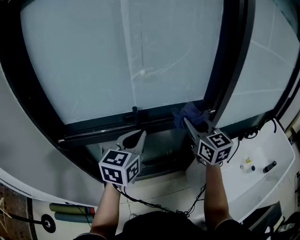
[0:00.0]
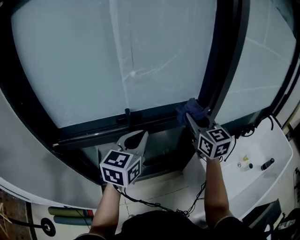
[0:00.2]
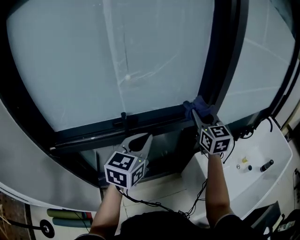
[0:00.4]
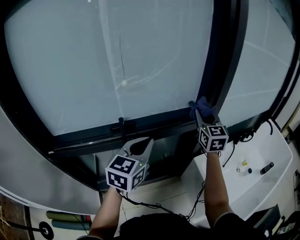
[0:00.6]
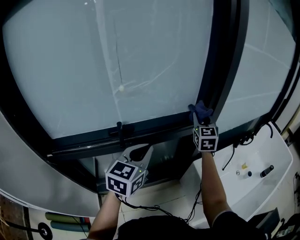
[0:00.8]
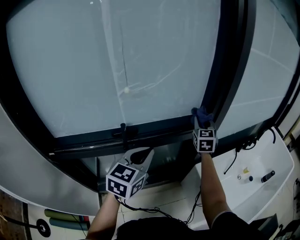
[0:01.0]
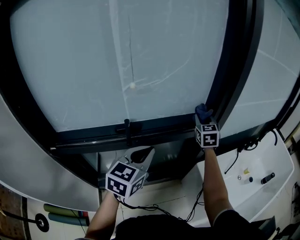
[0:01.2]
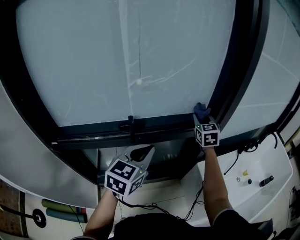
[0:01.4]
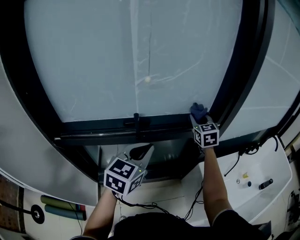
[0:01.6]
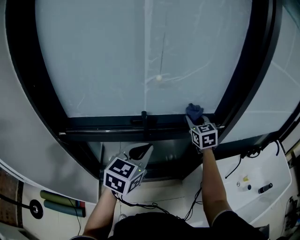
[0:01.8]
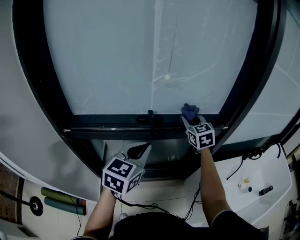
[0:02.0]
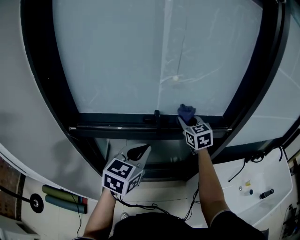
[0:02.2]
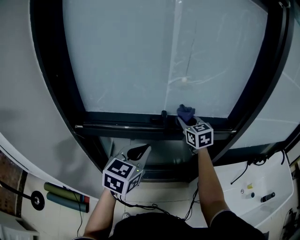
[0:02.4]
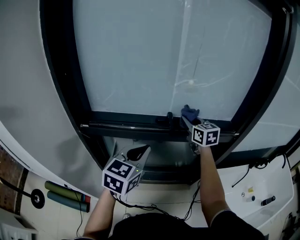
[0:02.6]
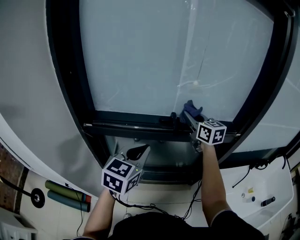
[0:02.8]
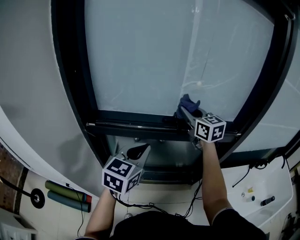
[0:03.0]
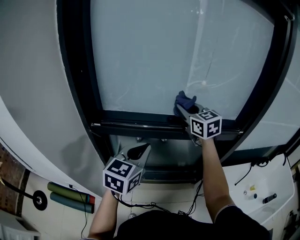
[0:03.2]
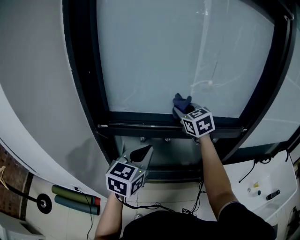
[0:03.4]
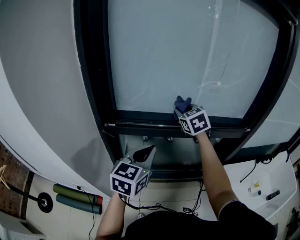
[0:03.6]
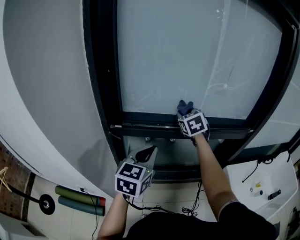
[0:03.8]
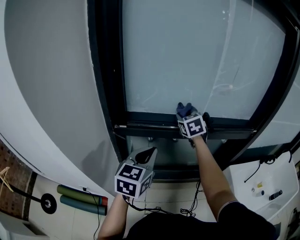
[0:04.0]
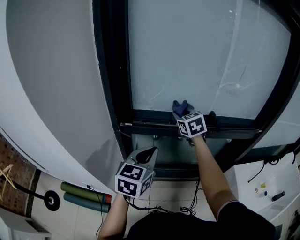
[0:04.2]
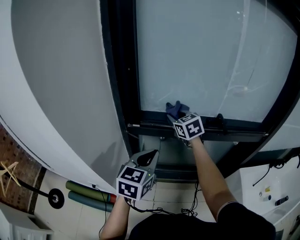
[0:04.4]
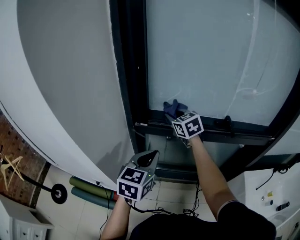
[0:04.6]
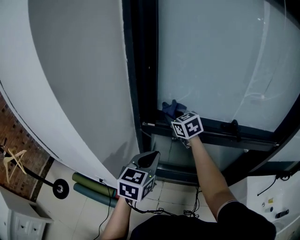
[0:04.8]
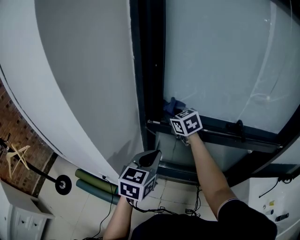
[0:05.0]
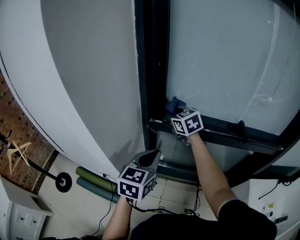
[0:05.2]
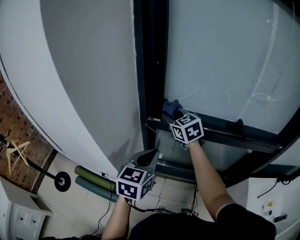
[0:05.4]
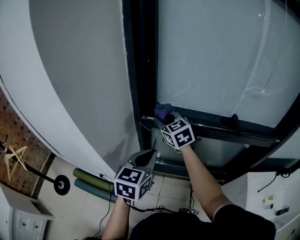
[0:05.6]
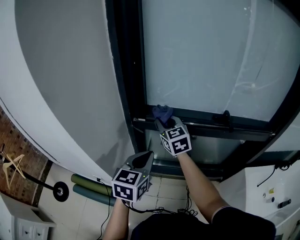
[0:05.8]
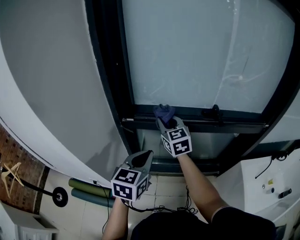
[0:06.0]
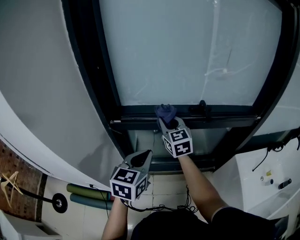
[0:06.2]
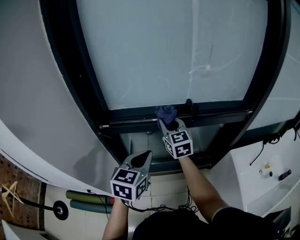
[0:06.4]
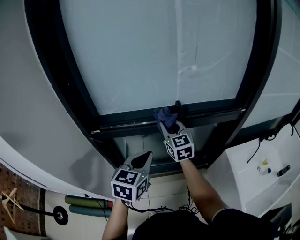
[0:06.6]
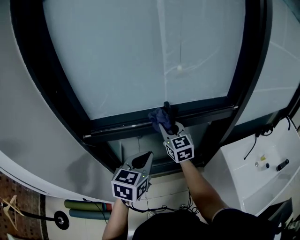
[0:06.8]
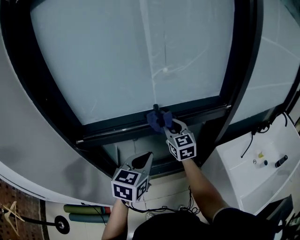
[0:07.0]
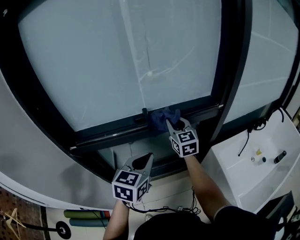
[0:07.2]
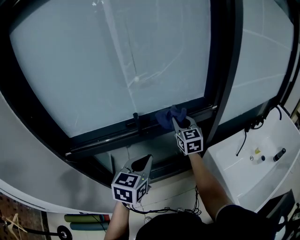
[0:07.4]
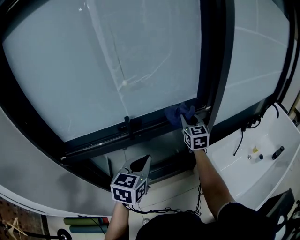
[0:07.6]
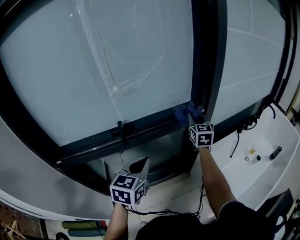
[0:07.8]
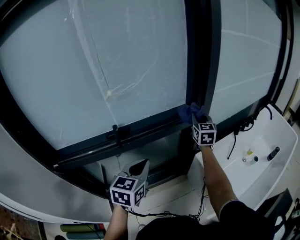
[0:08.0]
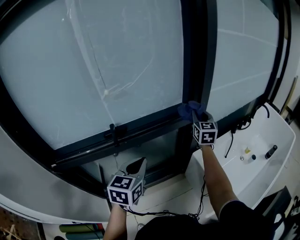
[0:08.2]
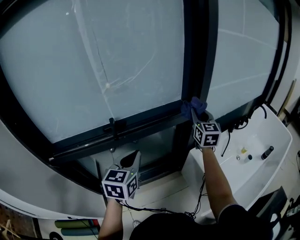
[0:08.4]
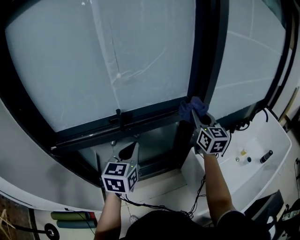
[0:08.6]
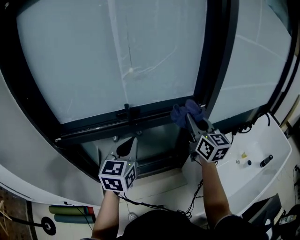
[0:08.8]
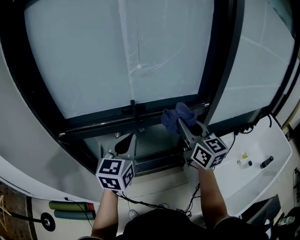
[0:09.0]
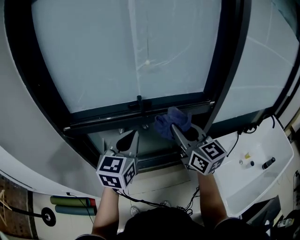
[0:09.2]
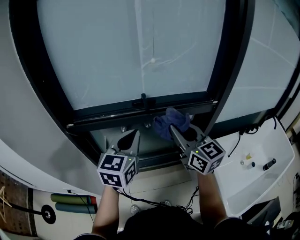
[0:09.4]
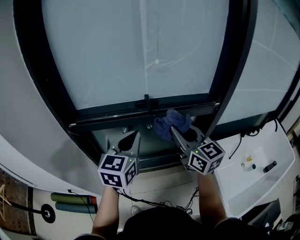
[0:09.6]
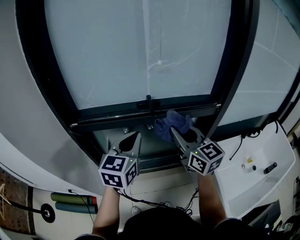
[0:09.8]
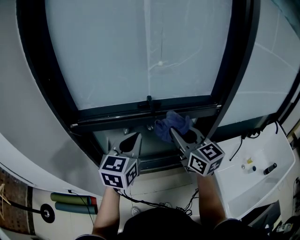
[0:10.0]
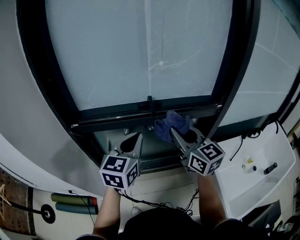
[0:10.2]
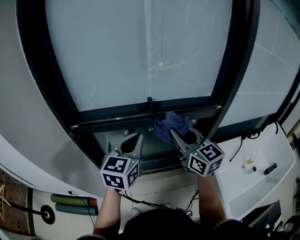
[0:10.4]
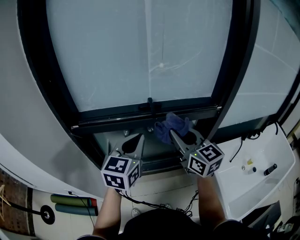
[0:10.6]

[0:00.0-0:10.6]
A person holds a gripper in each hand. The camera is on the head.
0.0 to 1.6 s: The right gripper is displaced forward and downward by approximately 20 cm, and turns by roughly 20 degrees.
1.6 to 3.0 s: The left gripper shifts some 15 cm to the left, while the right gripper heads to the left, covering roughly 25 cm, and rotates some 30 degrees.
3.0 to 4.6 s: The right gripper is displaced to the left by some 30 cm, and turns by approximately 20 degrees; the left gripper moves to the left, approximately 20 cm.
4.6 to 6.0 s: The right gripper goes roughly 5 cm backward, and travels to the left and back again, approximately 10 cm each way.
6.0 to 7.6 s: The right gripper shifts by some 50 cm, and turns by about 40 degrees. Meanwhile the left gripper ends up roughly 30 cm from where it was, and swivels about 20 degrees.
7.6 to 9.0 s: The right gripper heads backward and upward, covering about 20 cm, and rotates some 30 degrees; the left gripper moves upward and to the left, some 10 cm.
9.0 to 10.6 s: The right gripper shifts approximately 10 cm to the left.

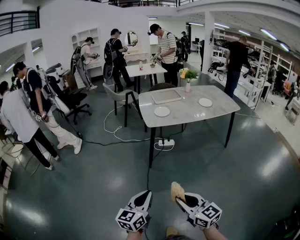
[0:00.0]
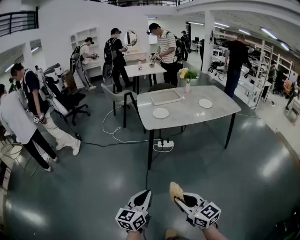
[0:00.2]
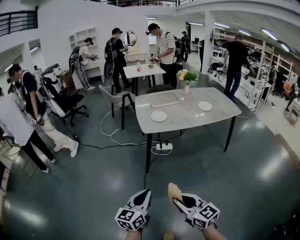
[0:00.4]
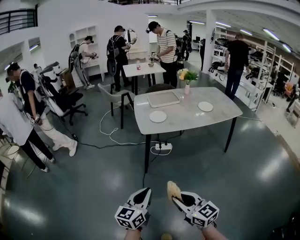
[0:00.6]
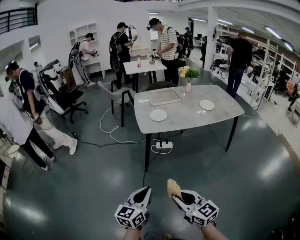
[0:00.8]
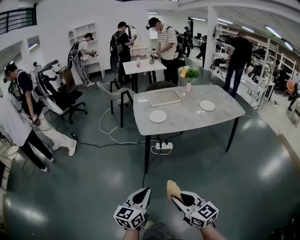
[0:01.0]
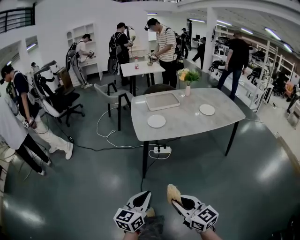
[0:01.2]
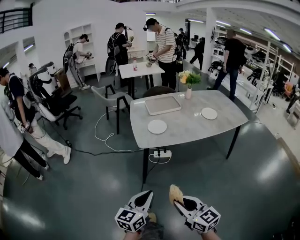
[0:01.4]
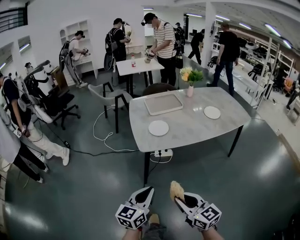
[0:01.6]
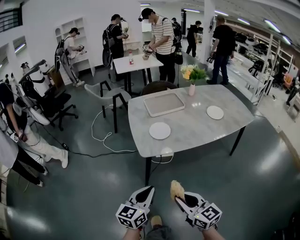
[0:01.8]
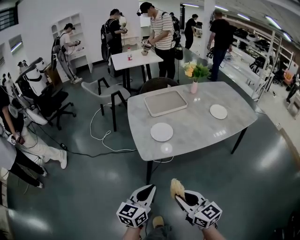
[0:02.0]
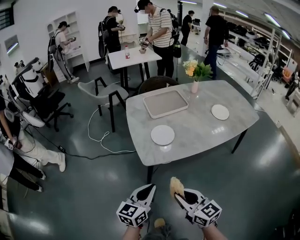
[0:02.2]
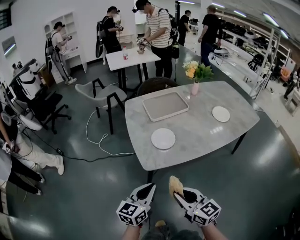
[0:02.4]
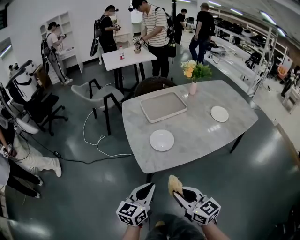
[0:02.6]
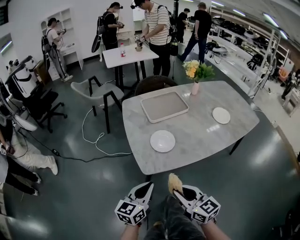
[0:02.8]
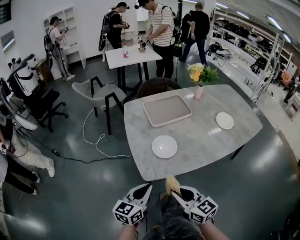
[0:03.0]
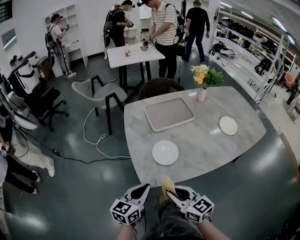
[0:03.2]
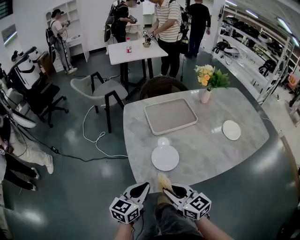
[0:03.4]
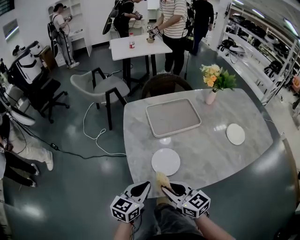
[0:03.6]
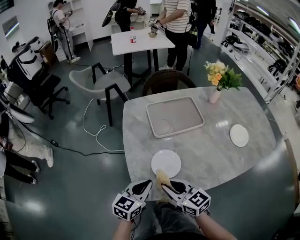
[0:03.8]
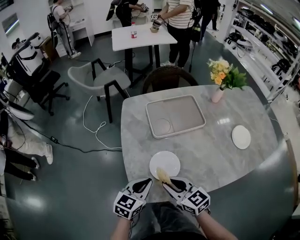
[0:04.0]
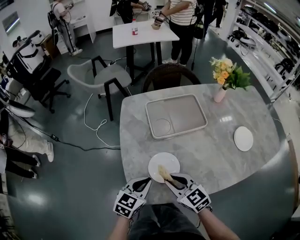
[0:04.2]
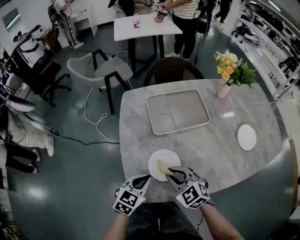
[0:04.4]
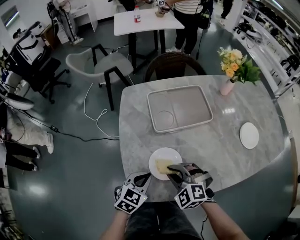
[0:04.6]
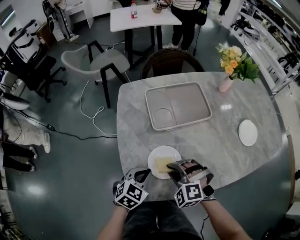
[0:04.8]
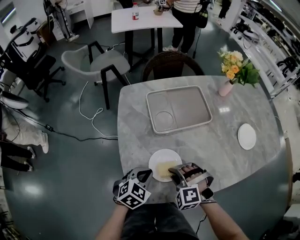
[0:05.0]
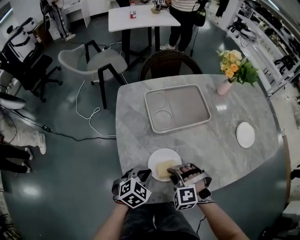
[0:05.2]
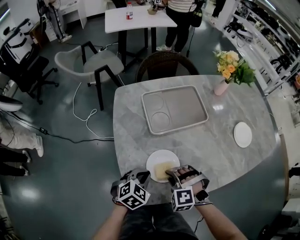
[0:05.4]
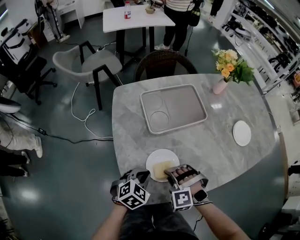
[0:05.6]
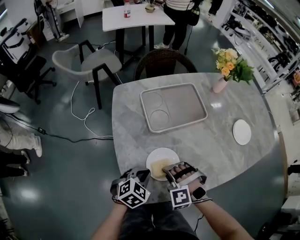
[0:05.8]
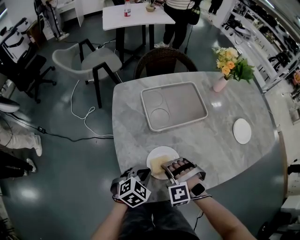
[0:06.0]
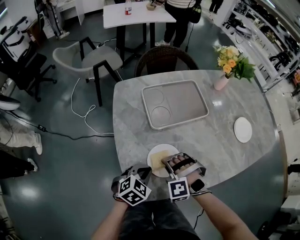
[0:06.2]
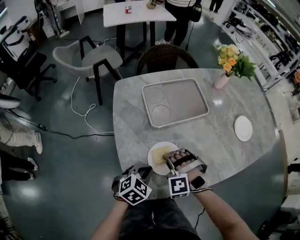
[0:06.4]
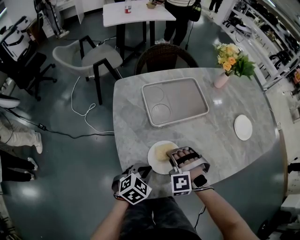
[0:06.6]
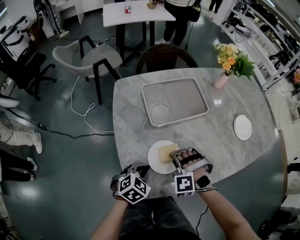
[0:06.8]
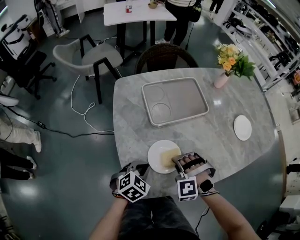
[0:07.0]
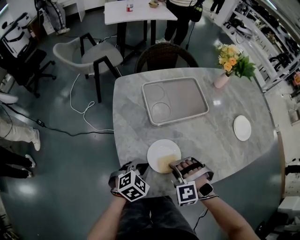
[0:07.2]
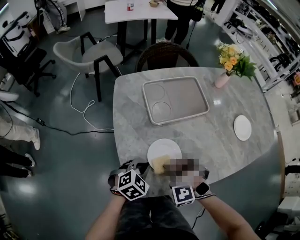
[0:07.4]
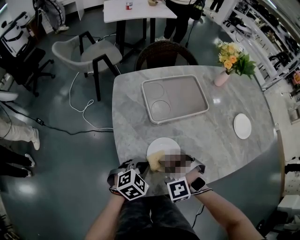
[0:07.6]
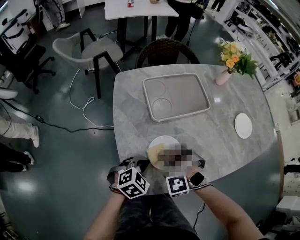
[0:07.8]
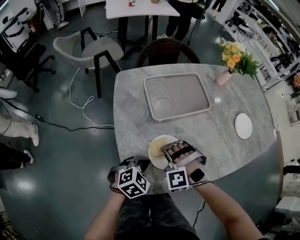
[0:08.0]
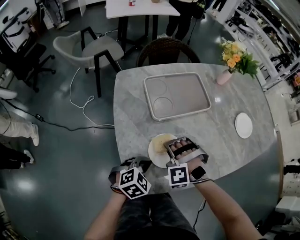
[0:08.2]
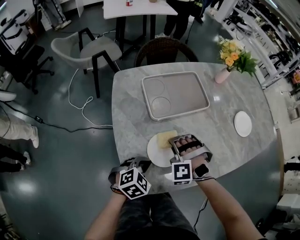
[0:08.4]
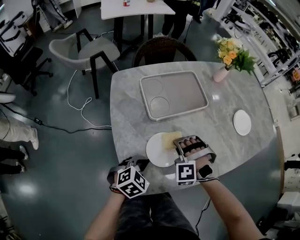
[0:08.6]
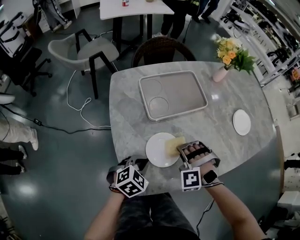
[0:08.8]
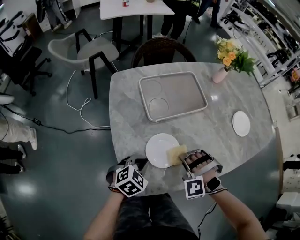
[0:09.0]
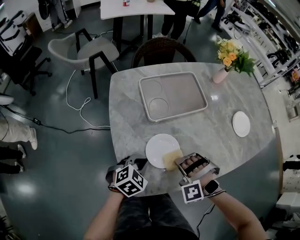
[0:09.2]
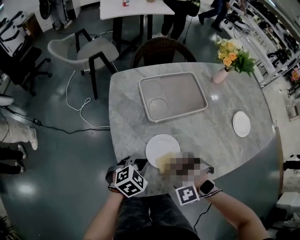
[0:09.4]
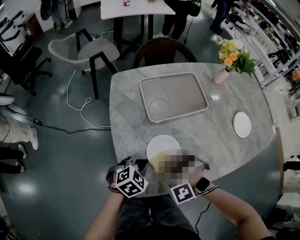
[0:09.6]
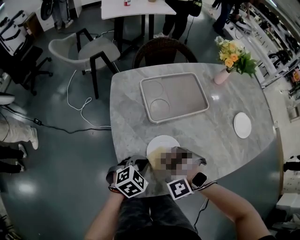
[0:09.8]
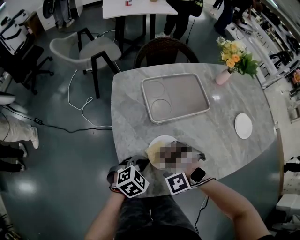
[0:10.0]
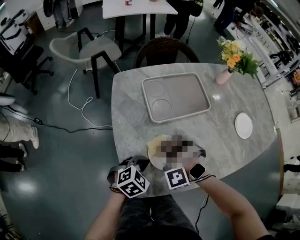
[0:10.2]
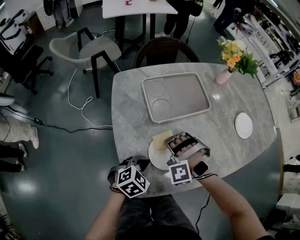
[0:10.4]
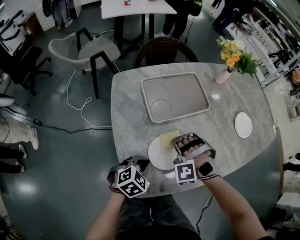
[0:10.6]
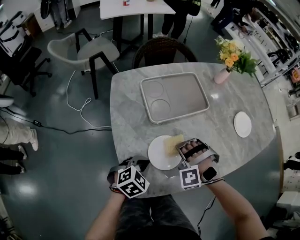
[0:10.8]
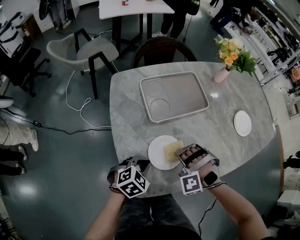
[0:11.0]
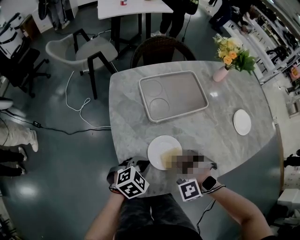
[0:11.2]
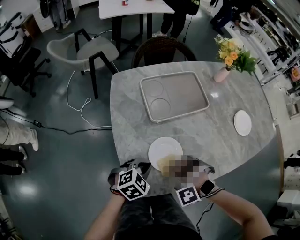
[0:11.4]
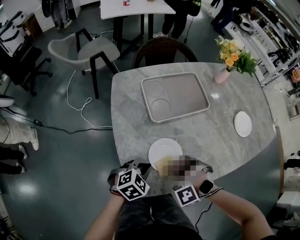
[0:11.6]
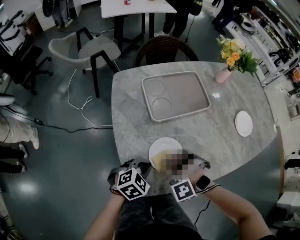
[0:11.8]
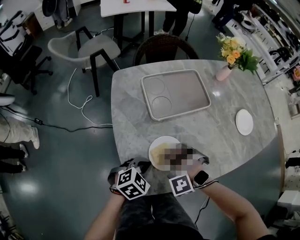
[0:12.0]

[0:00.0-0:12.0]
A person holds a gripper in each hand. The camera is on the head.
0.0 to 1.6 s: Both grippers travel together forward, roughly 30 cm.
1.6 to 3.0 s: The two grippers go approximately 25 cm forward.
3.0 to 4.4 s: The left gripper moves forward and downward, approximately 20 cm, and swivels some 30 degrees. The right gripper goes some 25 cm forward, and turns by approximately 40 degrees.
4.4 to 6.0 s: The right gripper shifts approximately 5 cm downward, and rolls counterclockwise, seen from behind, by roughly 50 degrees. The left gripper ends up approximately 5 cm from where it was, and changes its angle by approximately 20 degrees.
6.0 to 7.6 s: The grippers stay close to where they were, moving slightly.
7.6 to 9.0 s: The right gripper travels to the right by about 10 cm.
9.0 to 10.4 s: The right gripper shifts about 10 cm to the left.
10.4 to 12.0 s: The right gripper is displaced backward by about 5 cm.

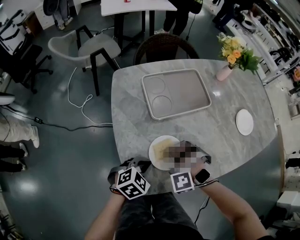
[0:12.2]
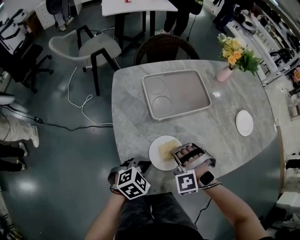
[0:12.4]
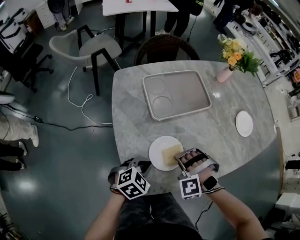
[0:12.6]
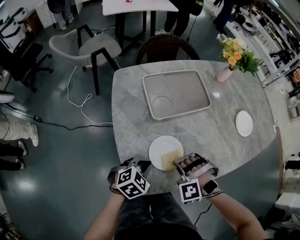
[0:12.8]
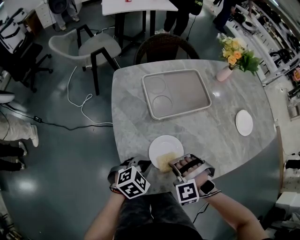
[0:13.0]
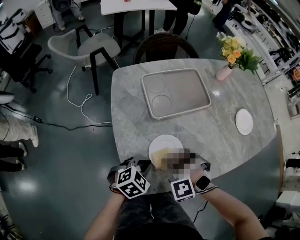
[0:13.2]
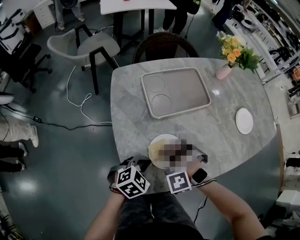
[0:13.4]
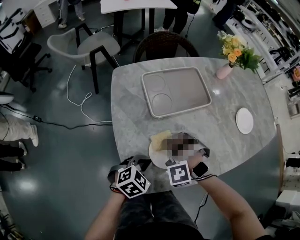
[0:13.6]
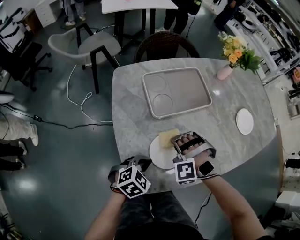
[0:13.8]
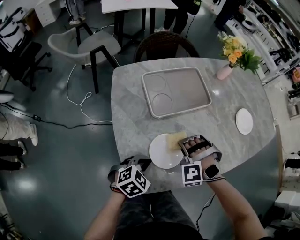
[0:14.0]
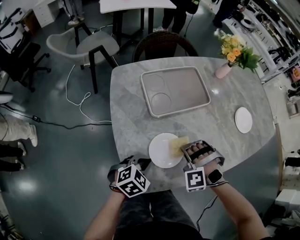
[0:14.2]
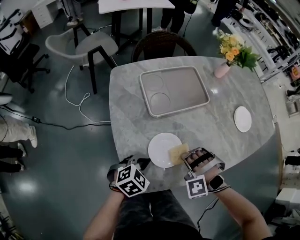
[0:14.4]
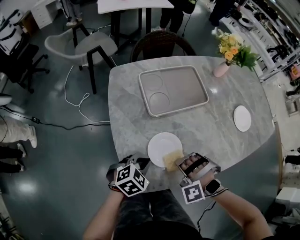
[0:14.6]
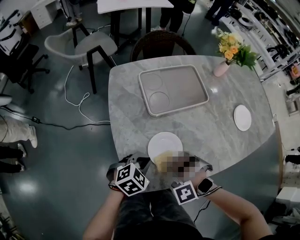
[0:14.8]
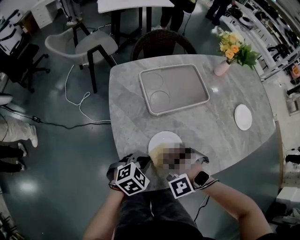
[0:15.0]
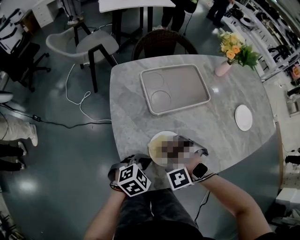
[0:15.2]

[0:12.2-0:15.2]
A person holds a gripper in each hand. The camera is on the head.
12.2 to 13.8 s: The right gripper goes some 5 cm forward.
13.8 to 15.2 s: The right gripper moves backward, about 5 cm.
